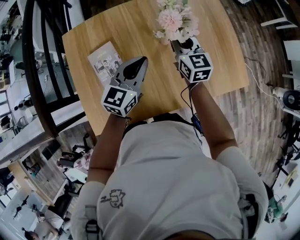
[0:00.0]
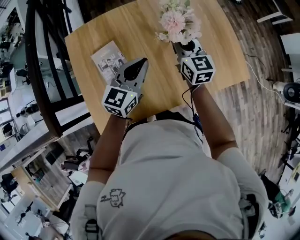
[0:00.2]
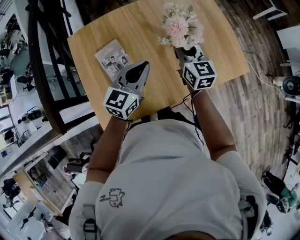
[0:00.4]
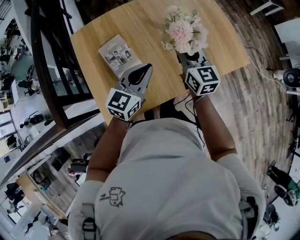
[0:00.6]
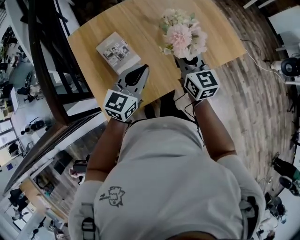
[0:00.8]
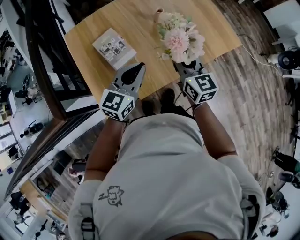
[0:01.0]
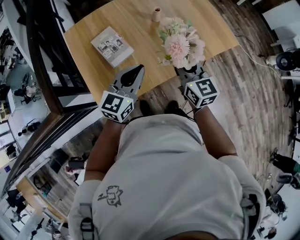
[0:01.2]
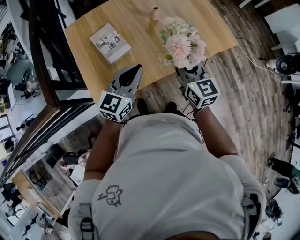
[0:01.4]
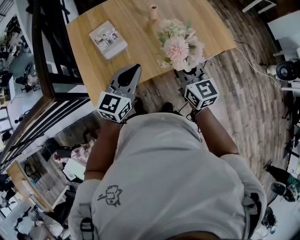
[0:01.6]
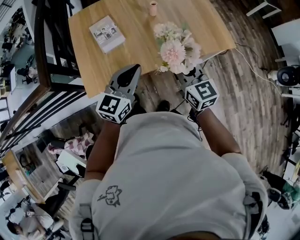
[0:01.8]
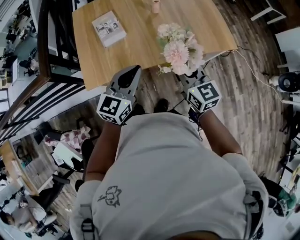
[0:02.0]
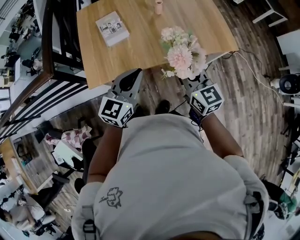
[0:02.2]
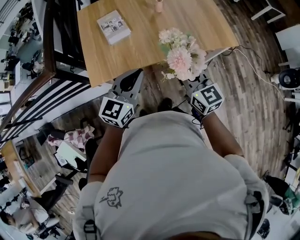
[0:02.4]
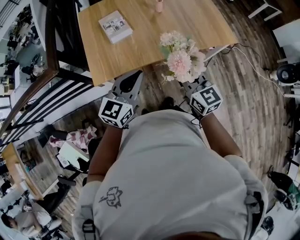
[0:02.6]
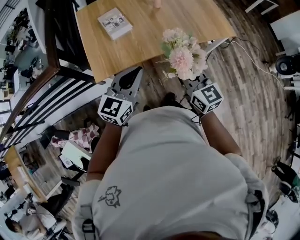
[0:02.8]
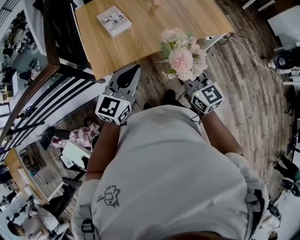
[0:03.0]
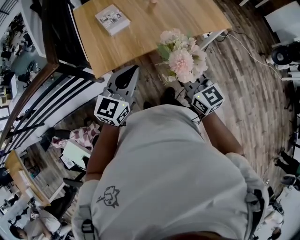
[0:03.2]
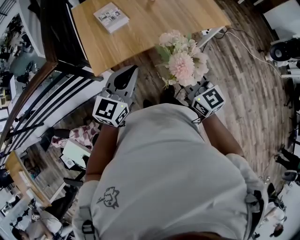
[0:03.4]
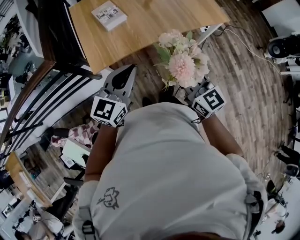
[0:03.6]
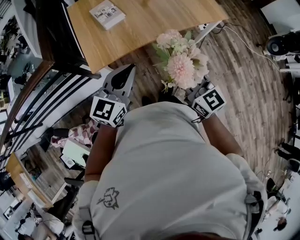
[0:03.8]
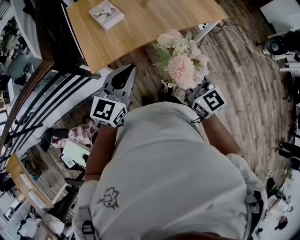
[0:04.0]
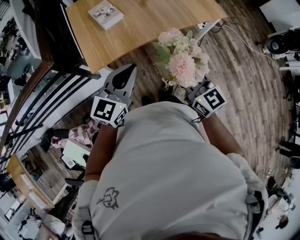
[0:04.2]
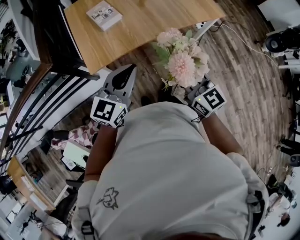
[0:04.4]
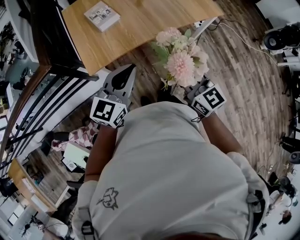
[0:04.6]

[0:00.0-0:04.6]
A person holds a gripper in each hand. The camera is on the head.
0.0 to 1.6 s: Both grippers travel together backward, roughly 30 cm.
1.6 to 3.0 s: The grippers both shift backward by about 20 cm.
3.0 to 4.6 s: Both grippers travel together backward, approximately 5 cm.

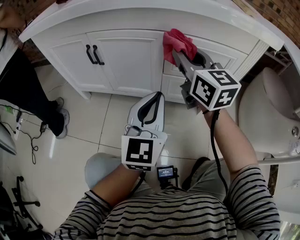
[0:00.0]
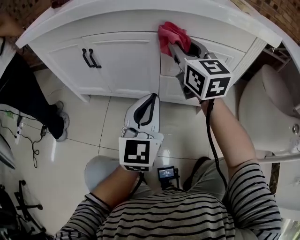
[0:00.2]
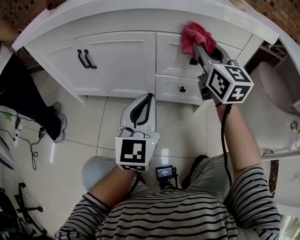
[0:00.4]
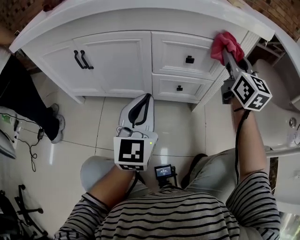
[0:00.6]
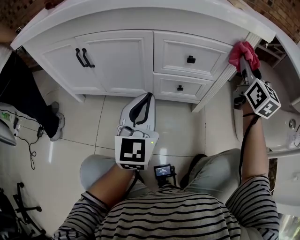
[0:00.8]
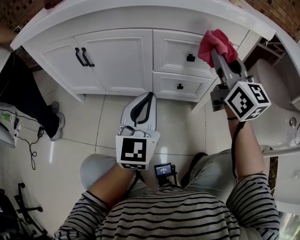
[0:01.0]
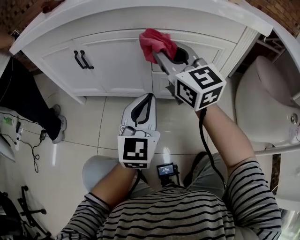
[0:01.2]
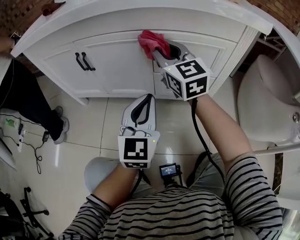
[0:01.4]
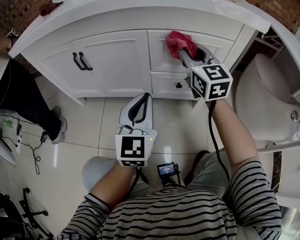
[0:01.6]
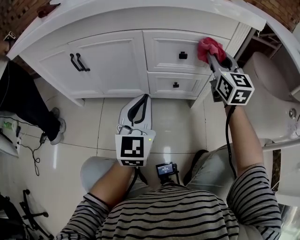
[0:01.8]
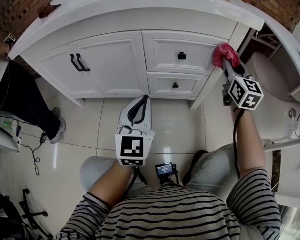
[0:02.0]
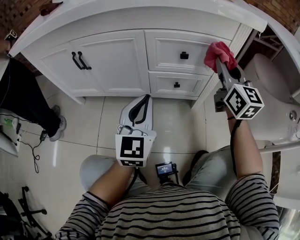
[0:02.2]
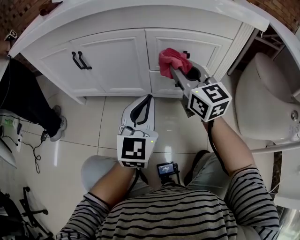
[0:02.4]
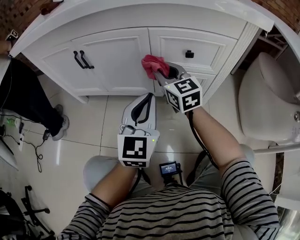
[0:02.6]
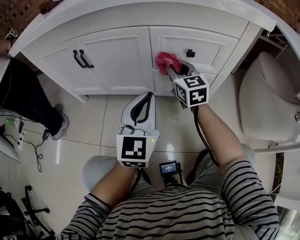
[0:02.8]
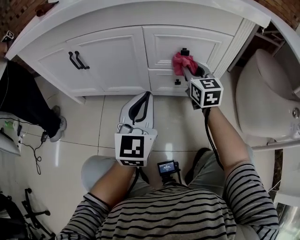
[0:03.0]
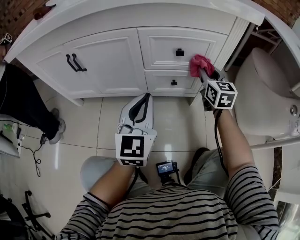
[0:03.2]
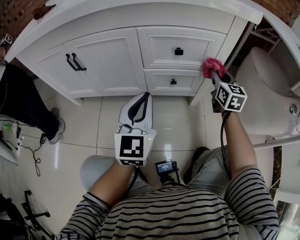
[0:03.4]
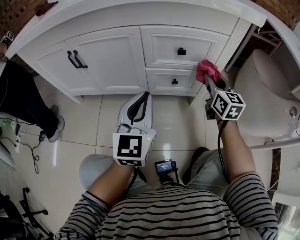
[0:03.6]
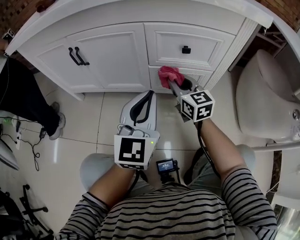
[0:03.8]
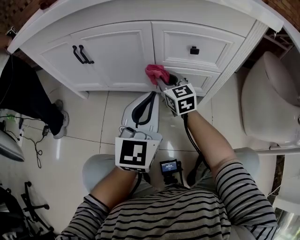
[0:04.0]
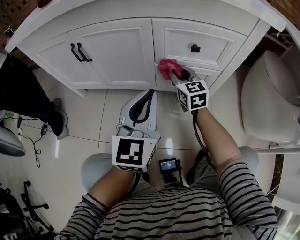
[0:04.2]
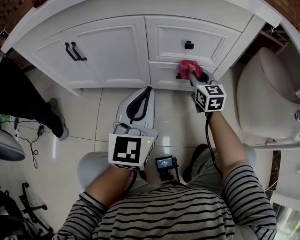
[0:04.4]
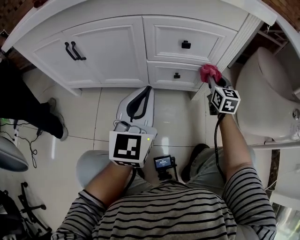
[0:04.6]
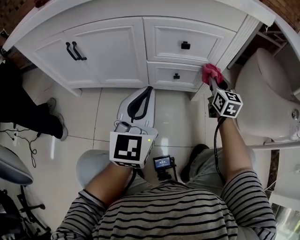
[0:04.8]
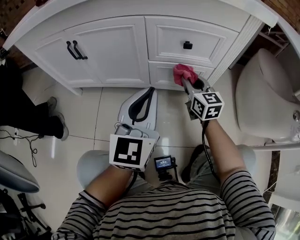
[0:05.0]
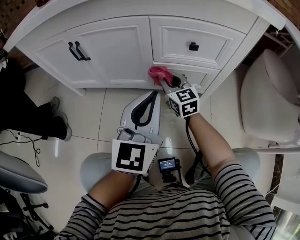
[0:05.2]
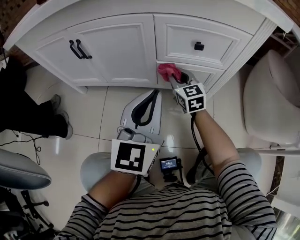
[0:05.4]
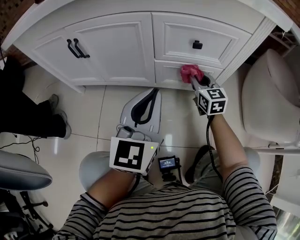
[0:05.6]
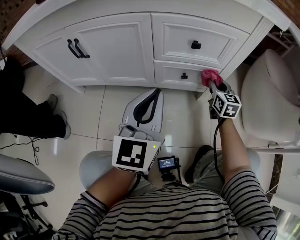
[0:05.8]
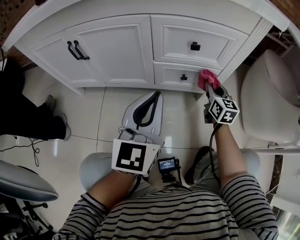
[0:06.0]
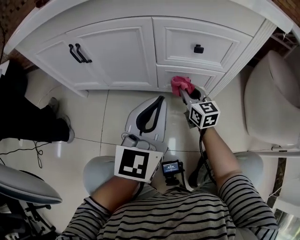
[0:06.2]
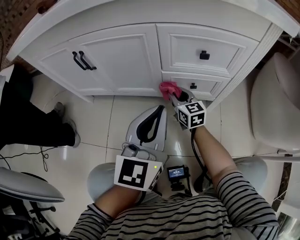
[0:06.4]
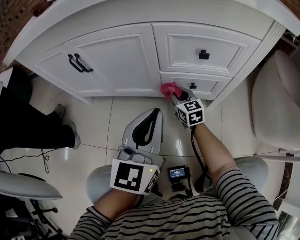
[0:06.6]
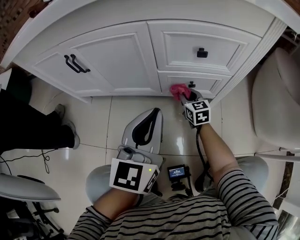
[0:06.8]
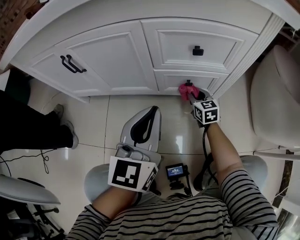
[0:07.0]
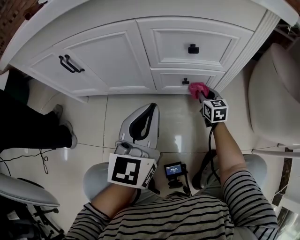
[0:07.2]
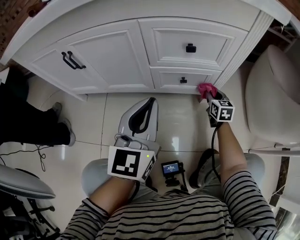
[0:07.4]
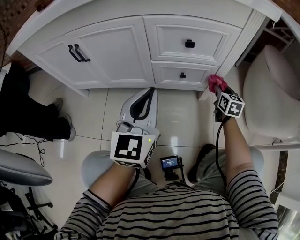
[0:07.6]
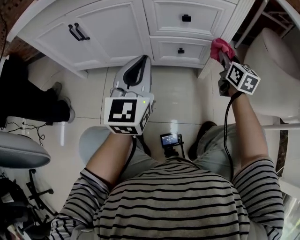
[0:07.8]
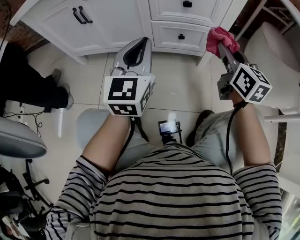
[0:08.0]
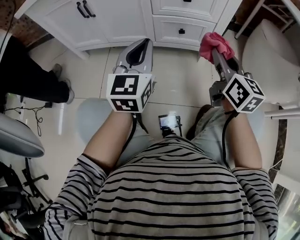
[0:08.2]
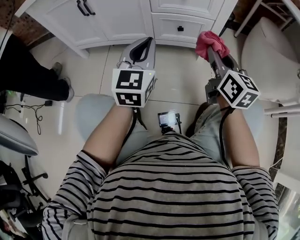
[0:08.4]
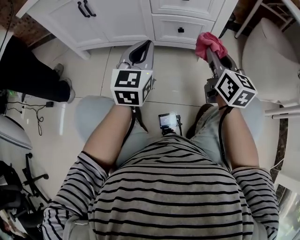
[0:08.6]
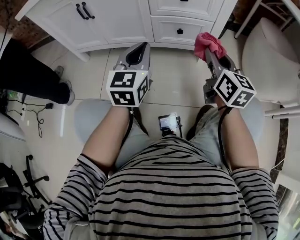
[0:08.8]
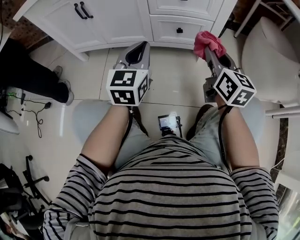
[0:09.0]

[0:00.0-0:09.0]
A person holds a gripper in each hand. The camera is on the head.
0.0 to 1.6 s: The right gripper goes left and right, some 30 cm each way, reversing 2 times.
1.6 to 3.0 s: The right gripper goes left and right, roughly 30 cm each way, reversing 2 times.
3.0 to 4.4 s: The right gripper moves left and right over some 30 cm, changing direction 2 times.
4.4 to 6.0 s: The right gripper goes left and right, some 25 cm each way, reversing 2 times.
6.0 to 7.6 s: The right gripper heads downward, covering some 5 cm, and reaches about 20 cm to the left, then returns.
7.6 to 9.0 s: The right gripper goes roughly 25 cm upward, backward and to the left, and swivels some 20 degrees. The left gripper goes approximately 5 cm downward.

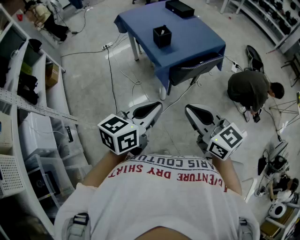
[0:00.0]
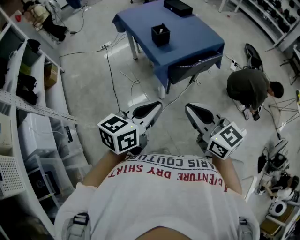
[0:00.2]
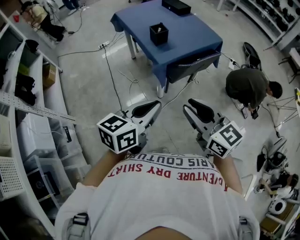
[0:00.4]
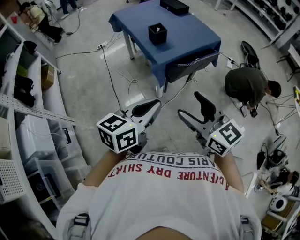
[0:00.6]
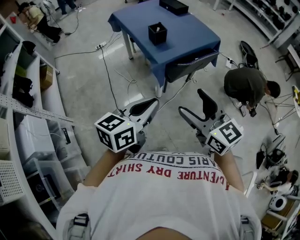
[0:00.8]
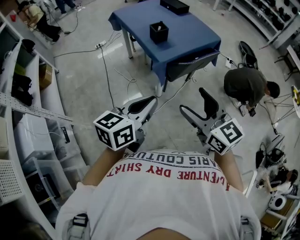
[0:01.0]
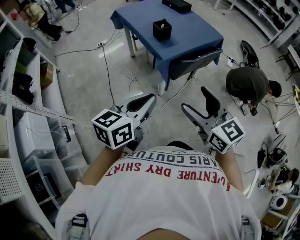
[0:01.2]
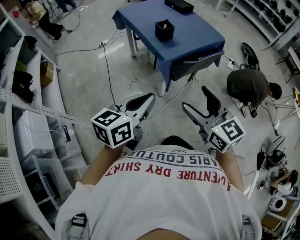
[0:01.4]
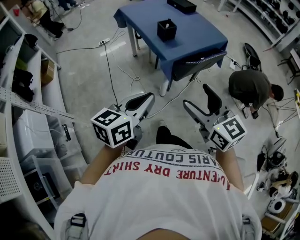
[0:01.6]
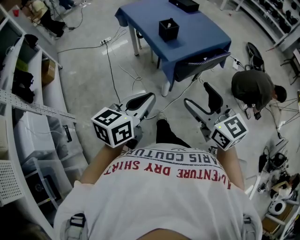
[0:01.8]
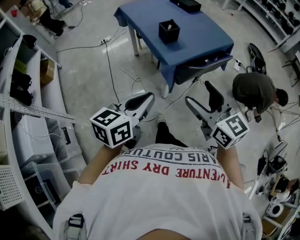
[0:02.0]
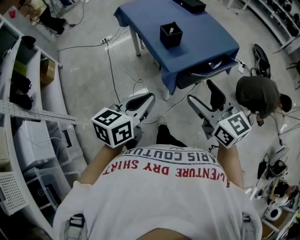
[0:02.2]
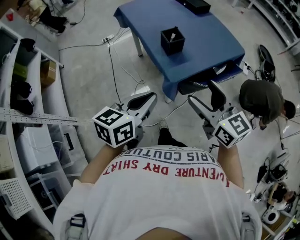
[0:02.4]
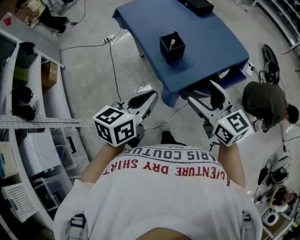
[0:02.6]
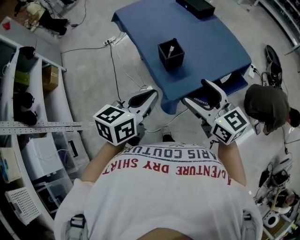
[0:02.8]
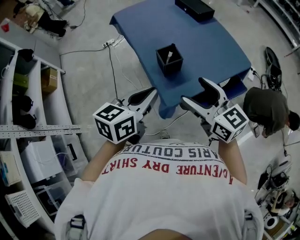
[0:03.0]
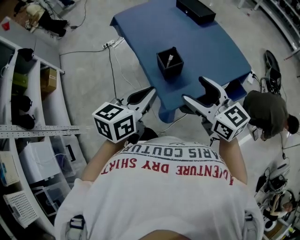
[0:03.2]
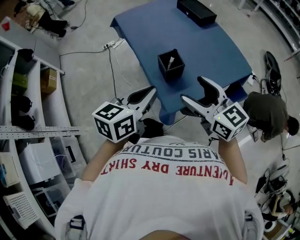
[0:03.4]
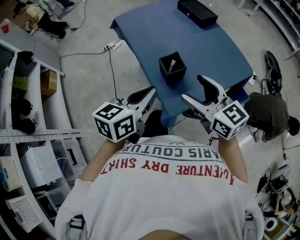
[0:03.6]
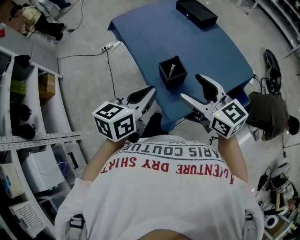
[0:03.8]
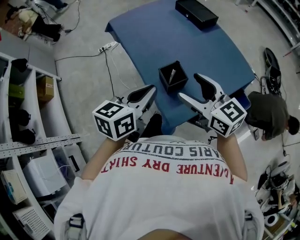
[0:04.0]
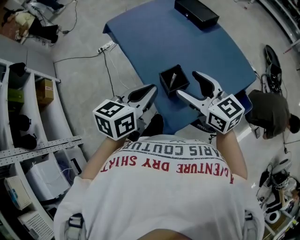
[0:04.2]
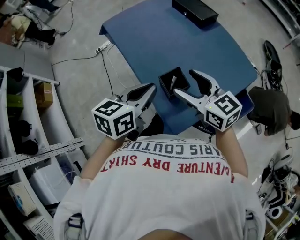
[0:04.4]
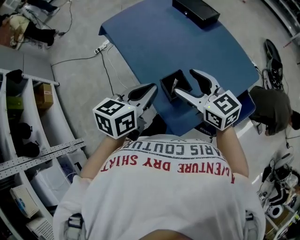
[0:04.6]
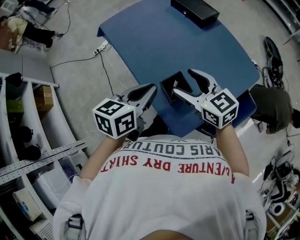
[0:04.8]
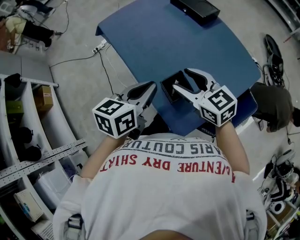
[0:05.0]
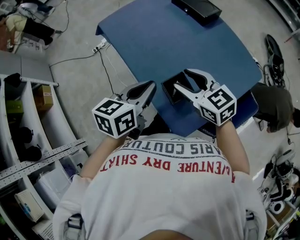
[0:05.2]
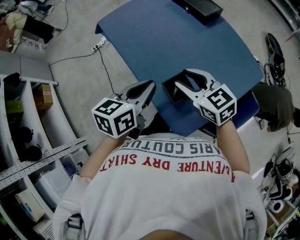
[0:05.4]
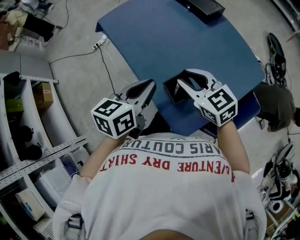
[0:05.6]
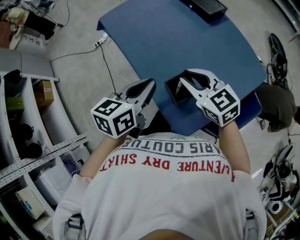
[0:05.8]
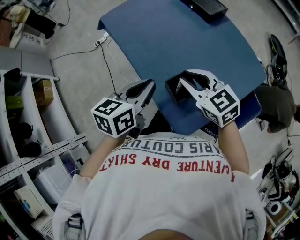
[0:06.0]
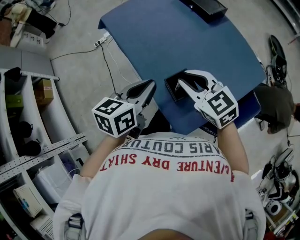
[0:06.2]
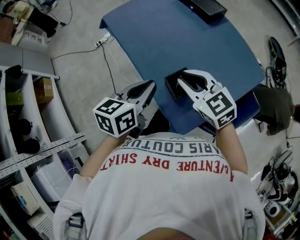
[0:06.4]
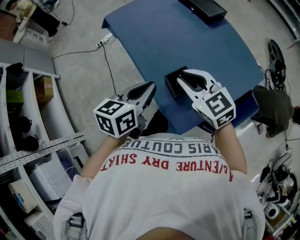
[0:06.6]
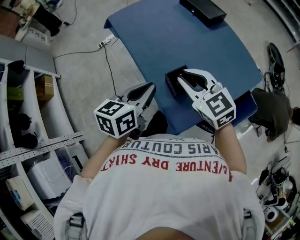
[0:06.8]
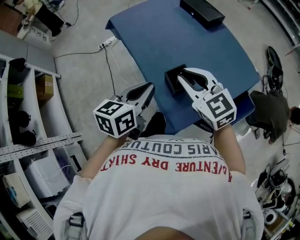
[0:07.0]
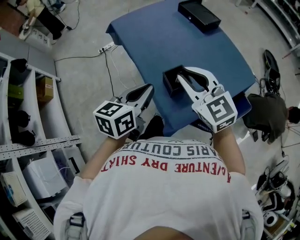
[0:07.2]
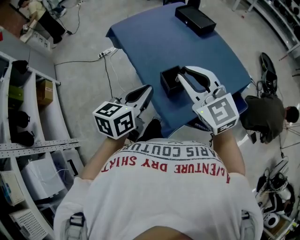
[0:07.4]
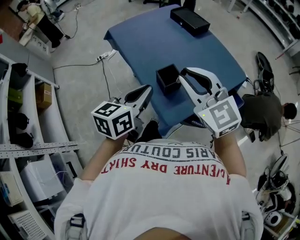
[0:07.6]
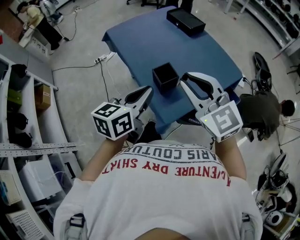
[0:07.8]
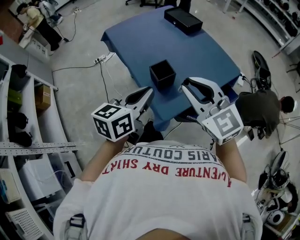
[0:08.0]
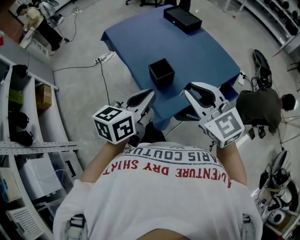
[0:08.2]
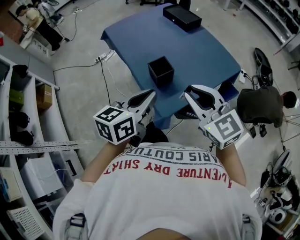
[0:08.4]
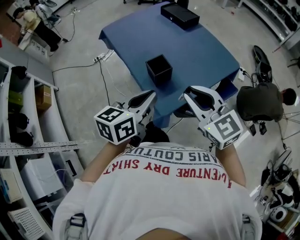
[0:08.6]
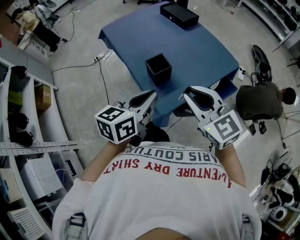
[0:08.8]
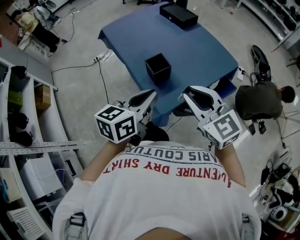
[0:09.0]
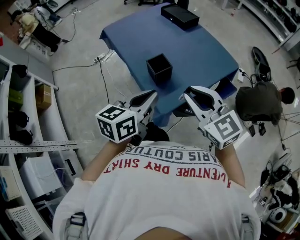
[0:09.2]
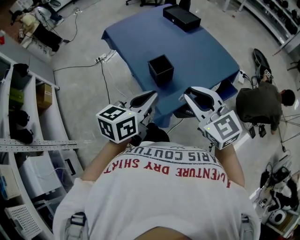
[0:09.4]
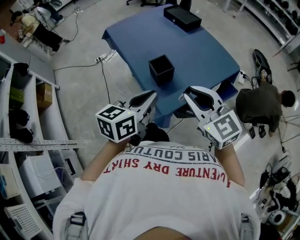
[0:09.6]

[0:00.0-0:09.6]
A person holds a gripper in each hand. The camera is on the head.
0.0 to 1.6 s: The left gripper is displaced to the left by about 5 cm. Meanwhile the right gripper opens its fingers.
1.6 to 3.2 s: Both grippers travel together forward, about 35 cm.
3.2 to 4.8 s: The grippers both shift forward by approximately 15 cm.
4.8 to 6.4 s: The right gripper closes its fingers.
6.4 to 8.0 s: The left gripper shifts about 15 cm backward and upward; the right gripper shifts about 20 cm backward, upward and to the right.
8.0 to 9.6 s: The right gripper changes place by roughly 5 cm.

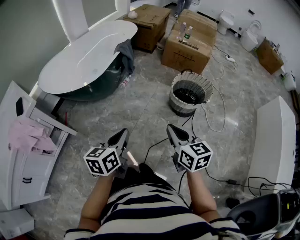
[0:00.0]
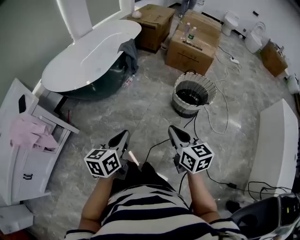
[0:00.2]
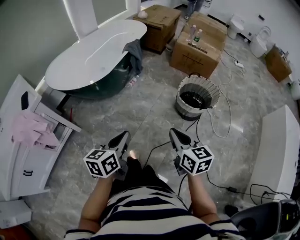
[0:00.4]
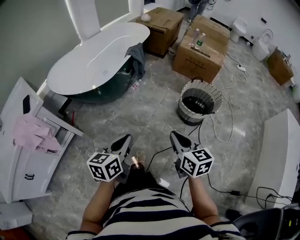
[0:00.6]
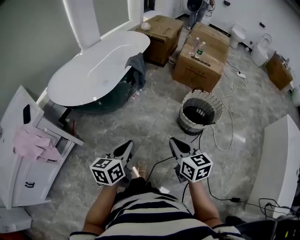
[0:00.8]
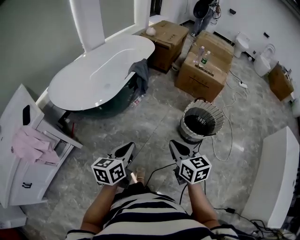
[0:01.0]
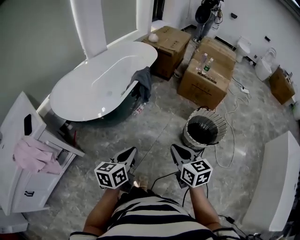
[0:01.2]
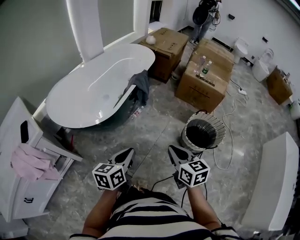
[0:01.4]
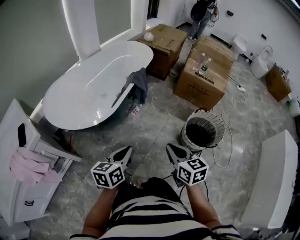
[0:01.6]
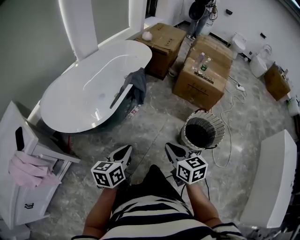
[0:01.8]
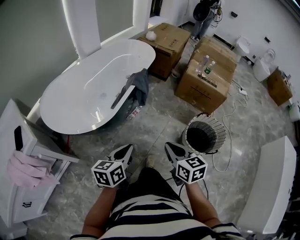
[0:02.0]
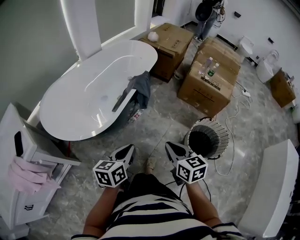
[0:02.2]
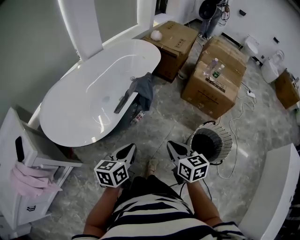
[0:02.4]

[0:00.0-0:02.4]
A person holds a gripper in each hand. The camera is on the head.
0.0 to 1.2 s: The two grippers go about 15 cm forward.
1.2 to 2.4 s: Both grippers travel together forward, roughly 20 cm.
